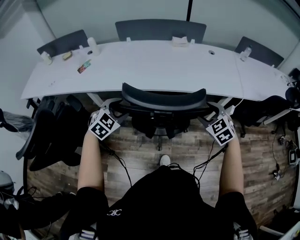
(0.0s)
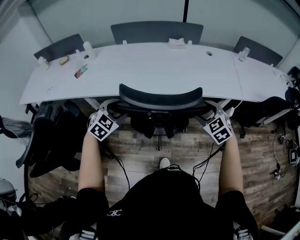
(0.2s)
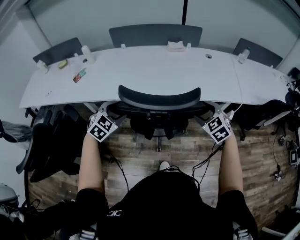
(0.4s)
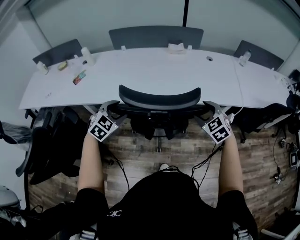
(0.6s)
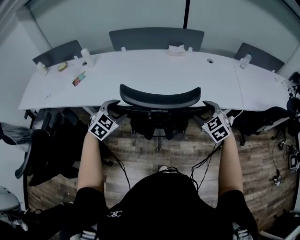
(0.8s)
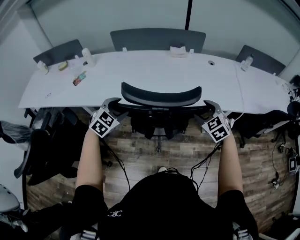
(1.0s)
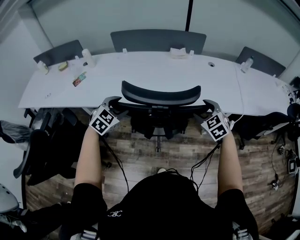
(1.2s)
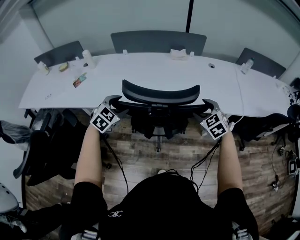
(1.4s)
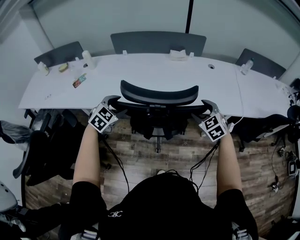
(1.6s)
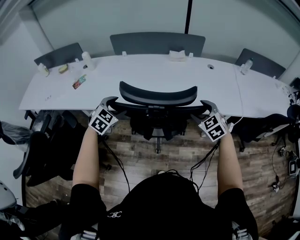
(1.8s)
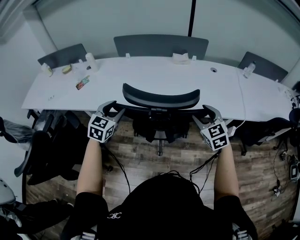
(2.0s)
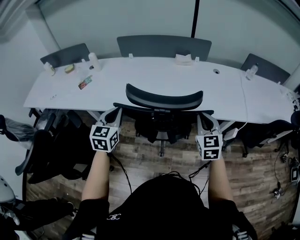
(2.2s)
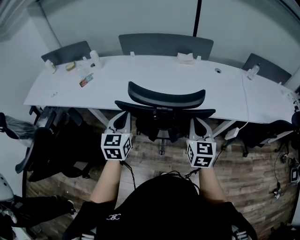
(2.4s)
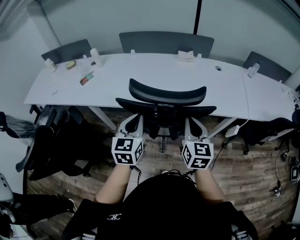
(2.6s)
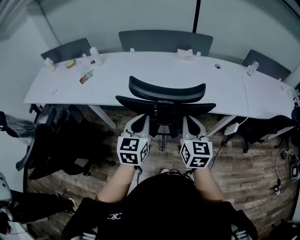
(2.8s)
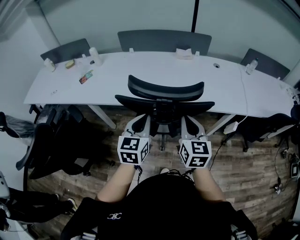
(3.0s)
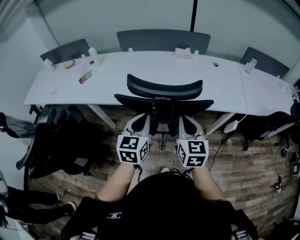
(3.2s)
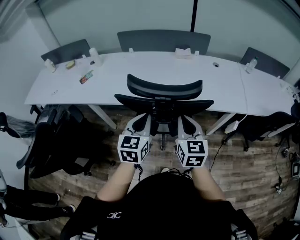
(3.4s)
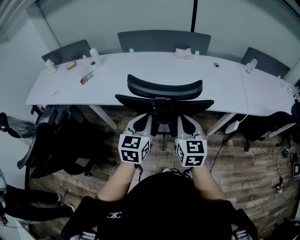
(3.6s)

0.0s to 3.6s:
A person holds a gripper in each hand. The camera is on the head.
0.0s to 1.8s: Both grippers move forward, some 15 cm.
1.8s to 3.6s: The right gripper moves backward, to the left and upward, about 15 cm, rotates about 40 degrees, and closes its fingers. The left gripper is displaced backward, to the right and upward by roughly 15 cm, swivels about 40 degrees, and closes.

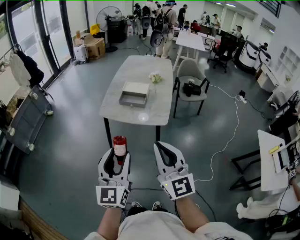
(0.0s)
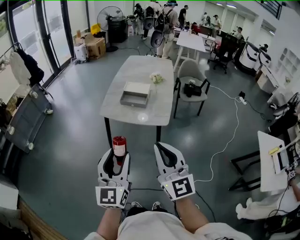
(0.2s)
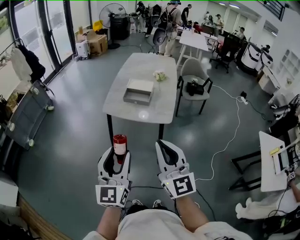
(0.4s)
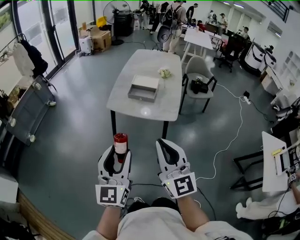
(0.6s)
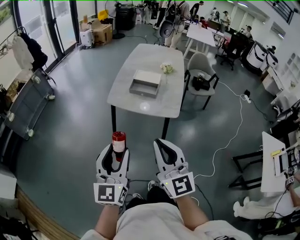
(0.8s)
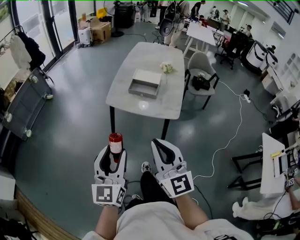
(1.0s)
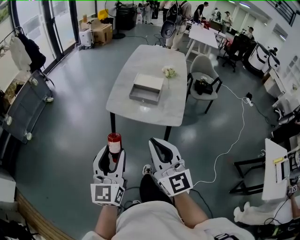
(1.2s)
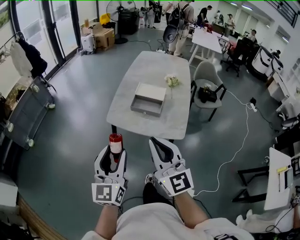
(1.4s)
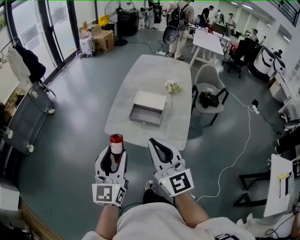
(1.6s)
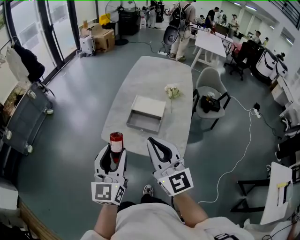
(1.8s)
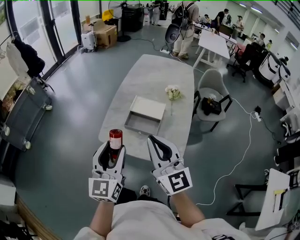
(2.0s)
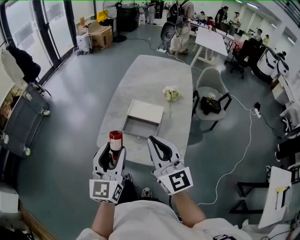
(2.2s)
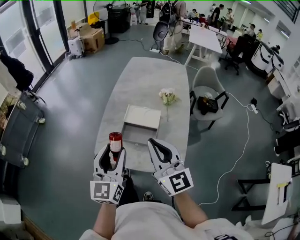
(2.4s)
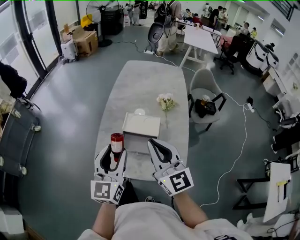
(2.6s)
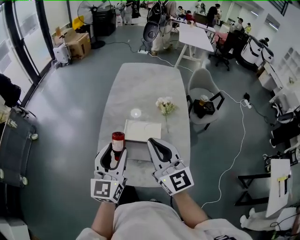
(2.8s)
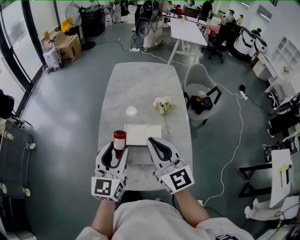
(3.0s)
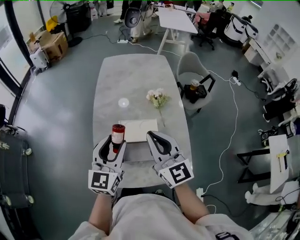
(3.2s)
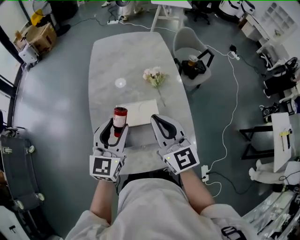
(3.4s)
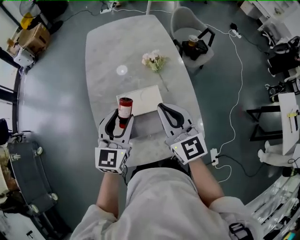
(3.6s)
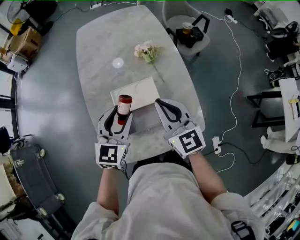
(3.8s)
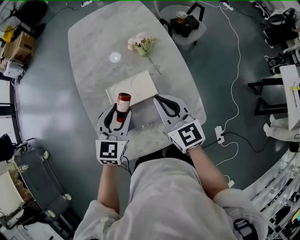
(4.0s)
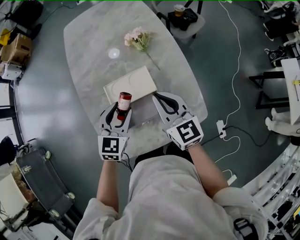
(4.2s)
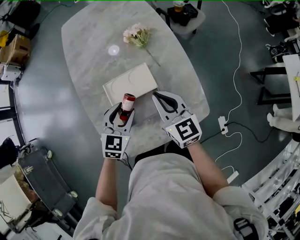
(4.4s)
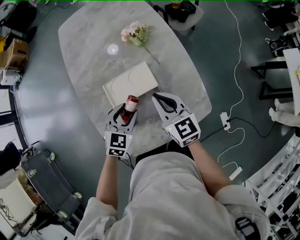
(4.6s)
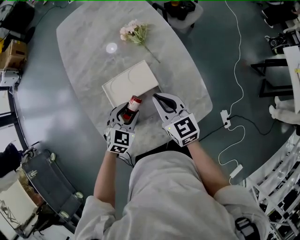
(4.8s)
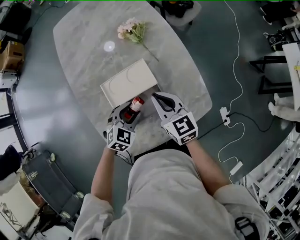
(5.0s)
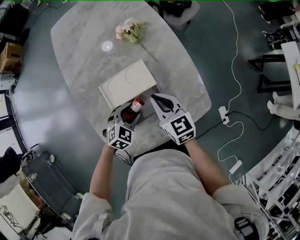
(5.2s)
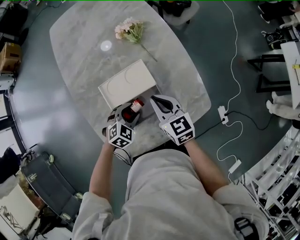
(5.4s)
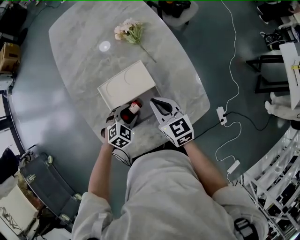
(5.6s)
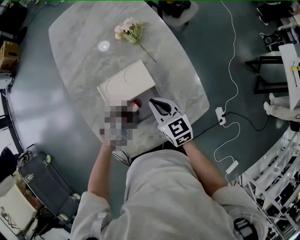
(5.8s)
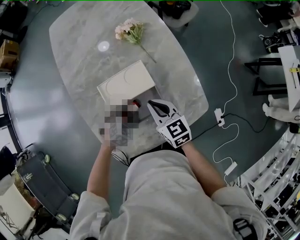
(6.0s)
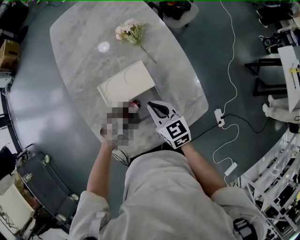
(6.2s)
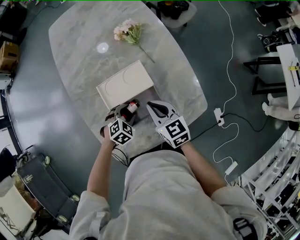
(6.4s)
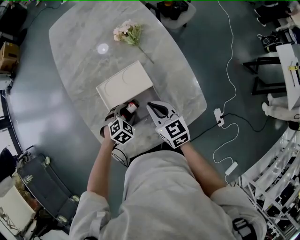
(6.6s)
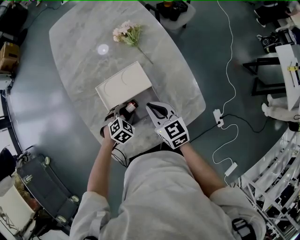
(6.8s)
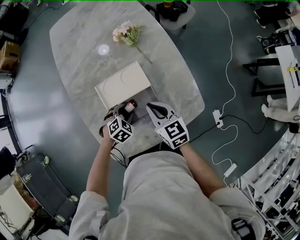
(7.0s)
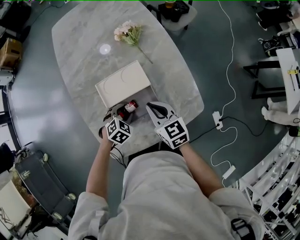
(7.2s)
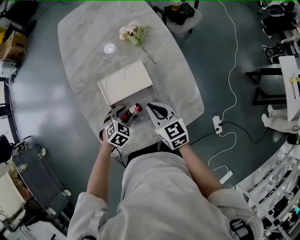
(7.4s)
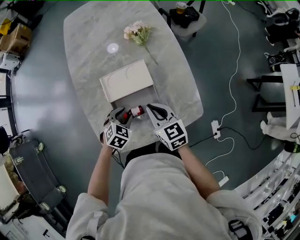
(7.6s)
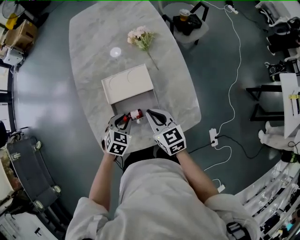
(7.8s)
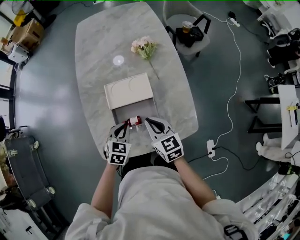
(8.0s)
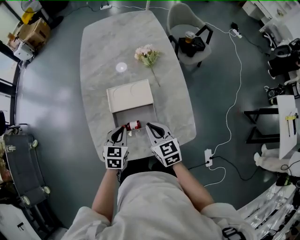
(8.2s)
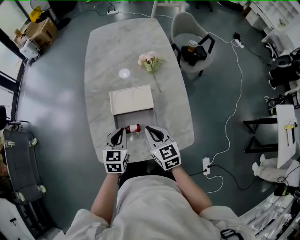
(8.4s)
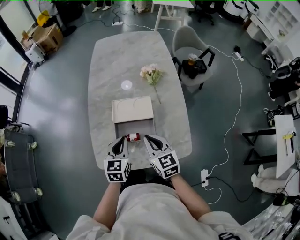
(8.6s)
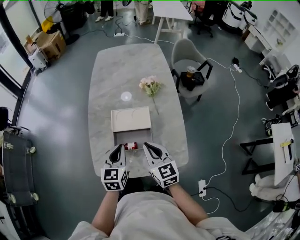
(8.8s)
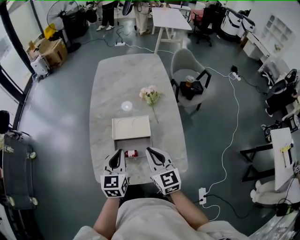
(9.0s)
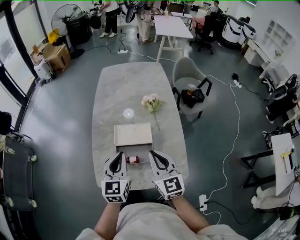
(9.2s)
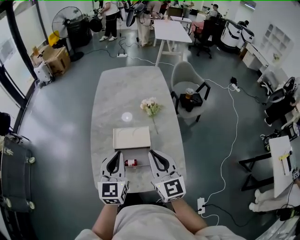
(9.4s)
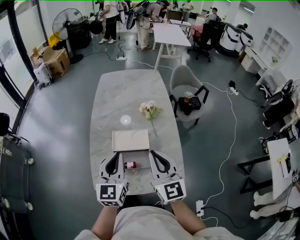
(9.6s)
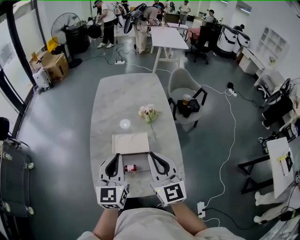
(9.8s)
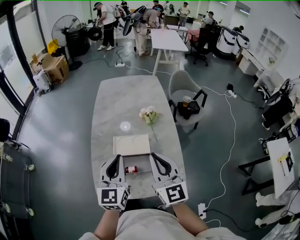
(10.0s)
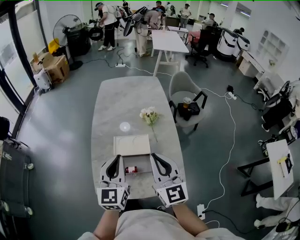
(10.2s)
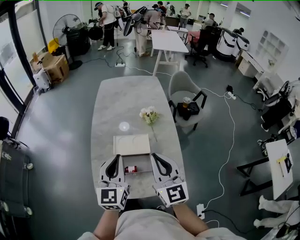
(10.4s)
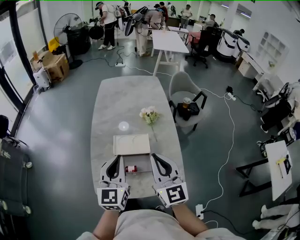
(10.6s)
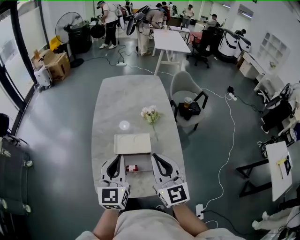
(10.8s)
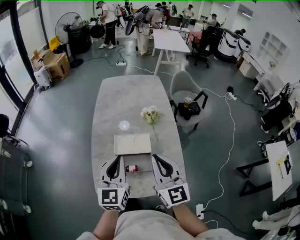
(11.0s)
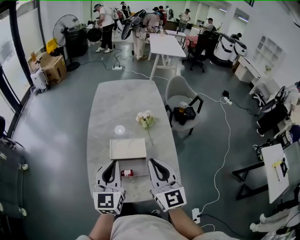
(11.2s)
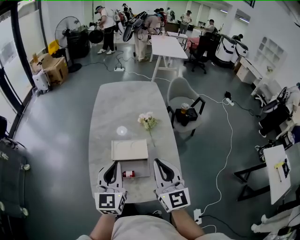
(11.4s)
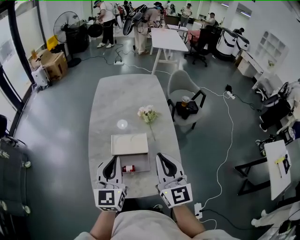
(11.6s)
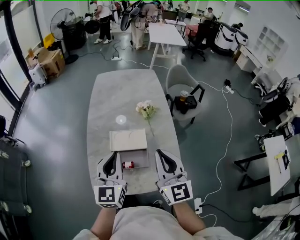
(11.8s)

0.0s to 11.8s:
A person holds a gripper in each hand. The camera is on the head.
0.0s to 1.4s: Both grippers move forward and to the left, roughly 20 cm.
1.4s to 3.0s: The pair of grippers is taken forward, some 40 cm. The left gripper turns by roughly 20 degrees.
3.0s to 4.4s: Both grippers move downward, some 20 cm. The right gripper swivels about 30 degrees. The left gripper tips its fingers downward by roughly 30 degrees.
4.4s to 6.0s: The left gripper goes roughly 15 cm downward, and changes its angle by approximately 40 degrees. The right gripper shifts some 10 cm downward.
6.0s to 7.4s: There are only small adjustments of the grippers.
7.4s to 8.8s: The left gripper heads upward, covering approximately 20 cm, tips its fingers upward by about 30 degrees, and closes up, while the right gripper heads upward, covering some 10 cm.
8.8s to 10.4s: Both grippers travel together upward, some 15 cm. The right gripper swivels roughly 20 degrees, while the left gripper swivels approximately 20 degrees.
10.4s to 11.8s: The grippers move only a little.

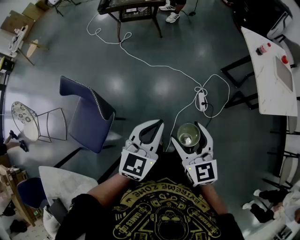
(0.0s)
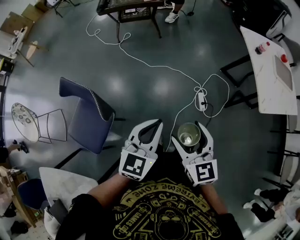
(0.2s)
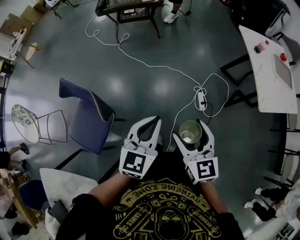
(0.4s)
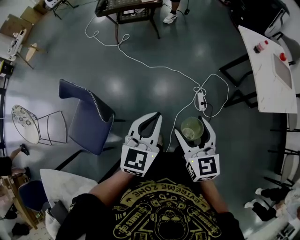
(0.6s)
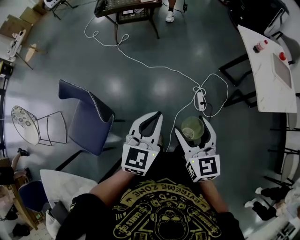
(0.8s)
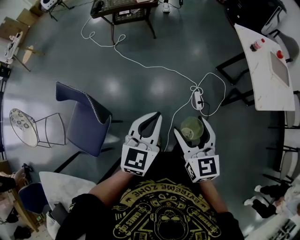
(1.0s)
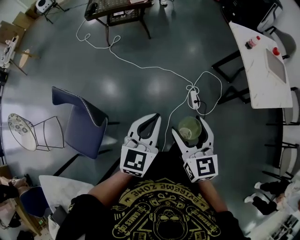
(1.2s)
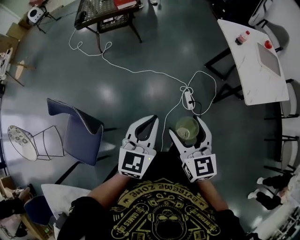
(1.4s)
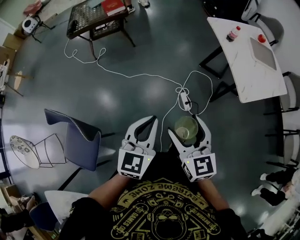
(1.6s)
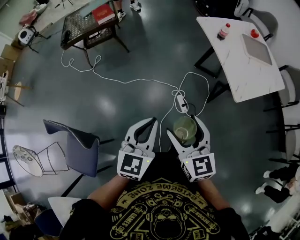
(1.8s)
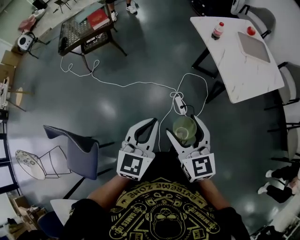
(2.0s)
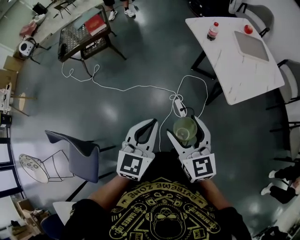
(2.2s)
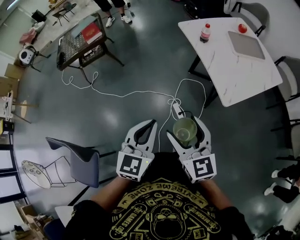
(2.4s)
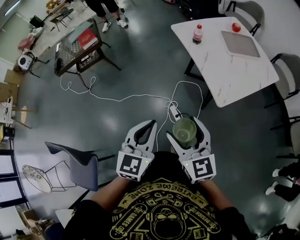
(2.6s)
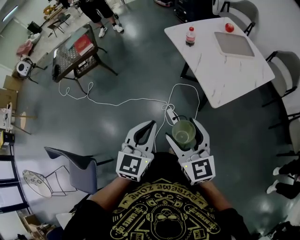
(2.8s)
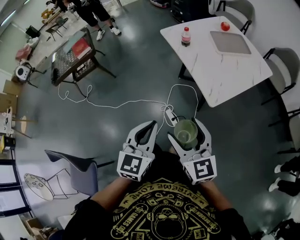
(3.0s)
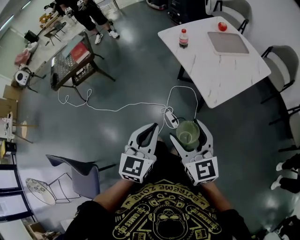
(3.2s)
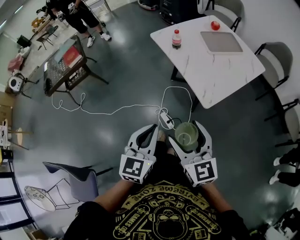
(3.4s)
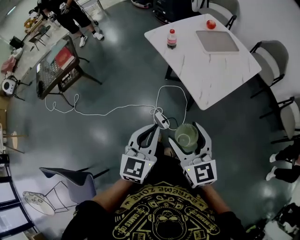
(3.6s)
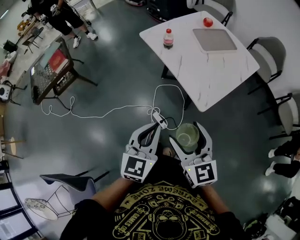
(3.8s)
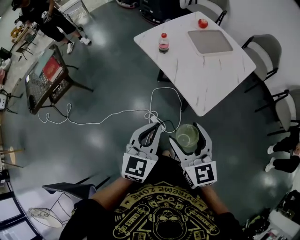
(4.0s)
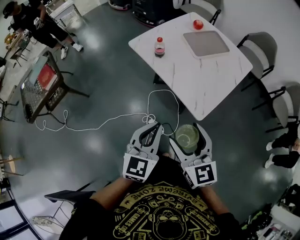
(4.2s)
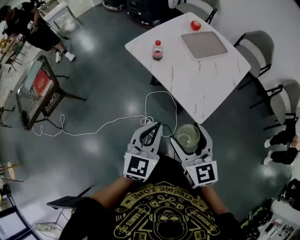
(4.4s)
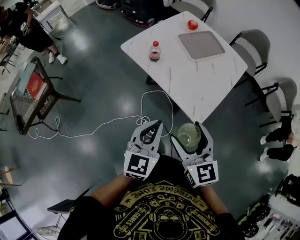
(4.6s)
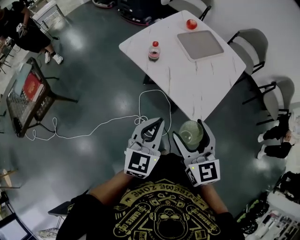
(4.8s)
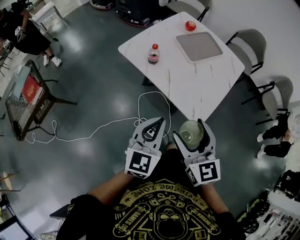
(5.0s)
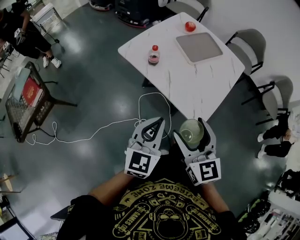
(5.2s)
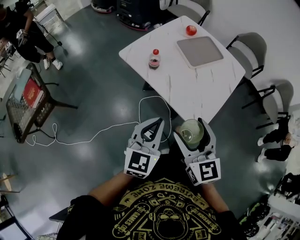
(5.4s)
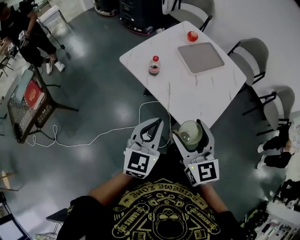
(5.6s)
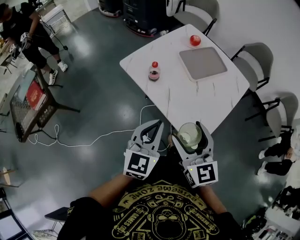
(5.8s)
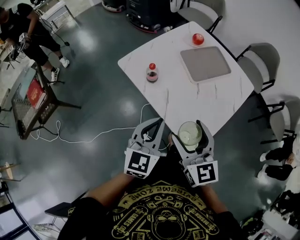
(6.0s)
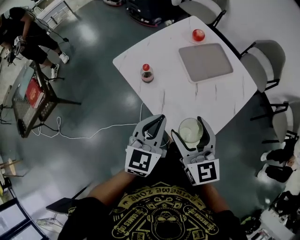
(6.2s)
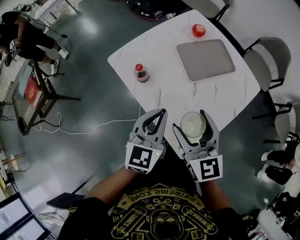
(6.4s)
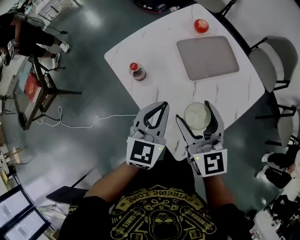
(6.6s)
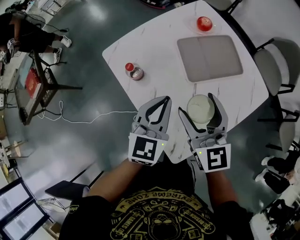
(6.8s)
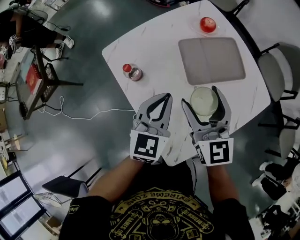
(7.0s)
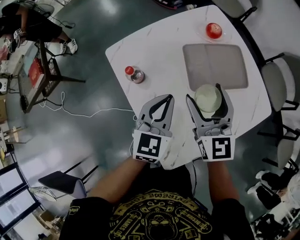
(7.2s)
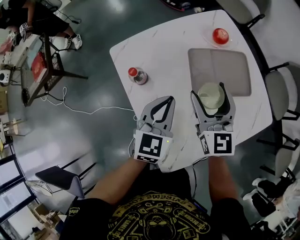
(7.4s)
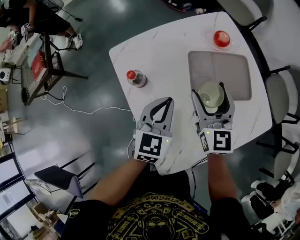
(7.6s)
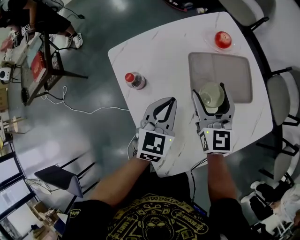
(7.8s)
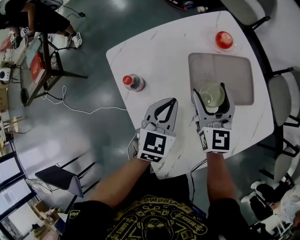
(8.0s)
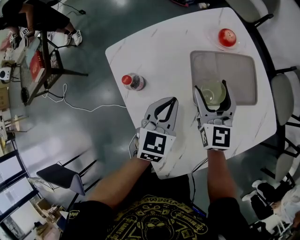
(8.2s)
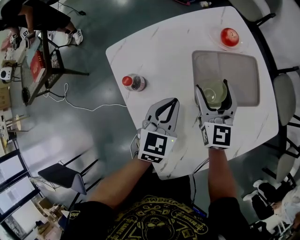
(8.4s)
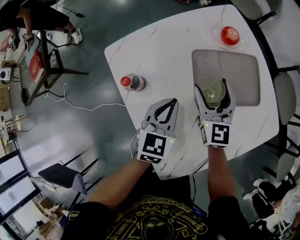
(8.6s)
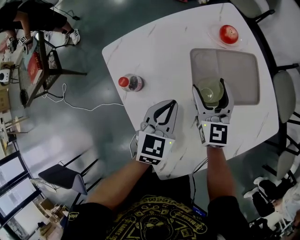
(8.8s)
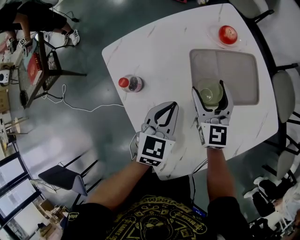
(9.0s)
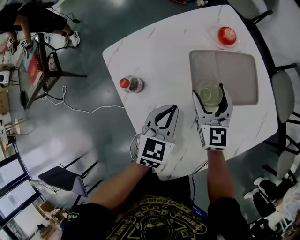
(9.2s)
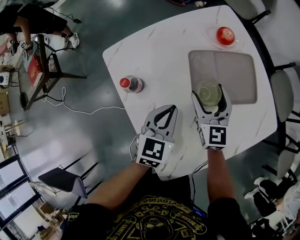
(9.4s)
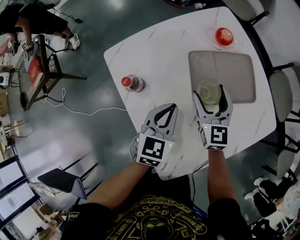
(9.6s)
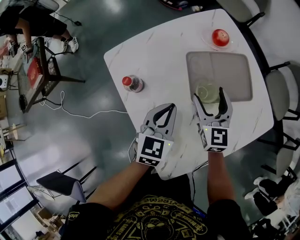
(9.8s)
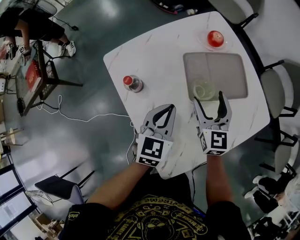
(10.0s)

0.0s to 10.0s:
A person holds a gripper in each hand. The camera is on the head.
0.0s to 1.4s: The grippers both shift to the right and forward by approximately 10 cm.
1.4s to 2.8s: The left gripper travels to the right and forward by some 25 cm, while the right gripper heads to the right, covering about 25 cm.
2.8s to 4.2s: Both grippers travel together forward, about 15 cm. The right gripper changes its angle by roughly 20 degrees.
4.2s to 5.8s: Both grippers move forward, some 15 cm.
5.8s to 7.2s: The two grippers go roughly 30 cm forward and to the right.
7.2s to 8.6s: The left gripper travels downward by approximately 10 cm. The right gripper heads downward and forward, covering roughly 15 cm.
8.6s to 10.0s: The right gripper goes approximately 5 cm backward.
